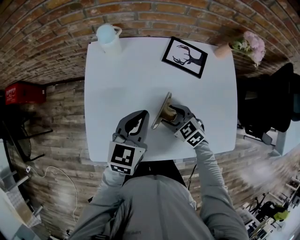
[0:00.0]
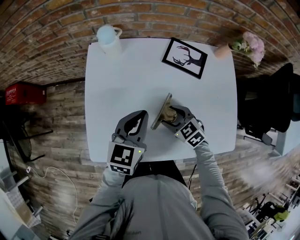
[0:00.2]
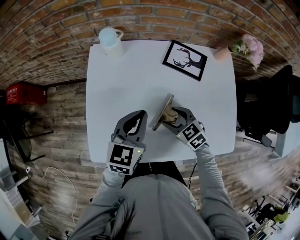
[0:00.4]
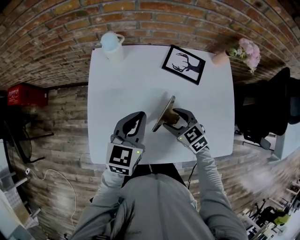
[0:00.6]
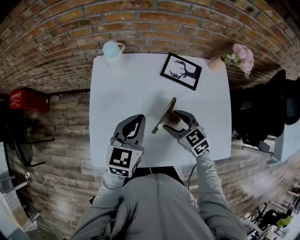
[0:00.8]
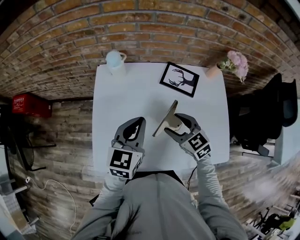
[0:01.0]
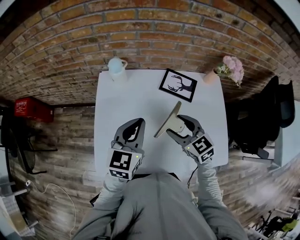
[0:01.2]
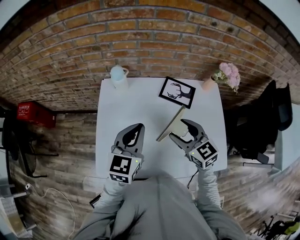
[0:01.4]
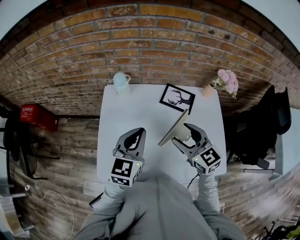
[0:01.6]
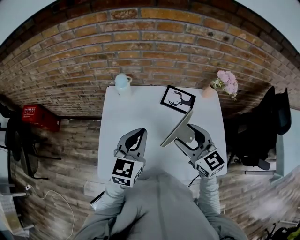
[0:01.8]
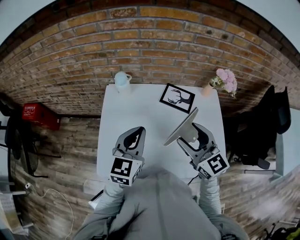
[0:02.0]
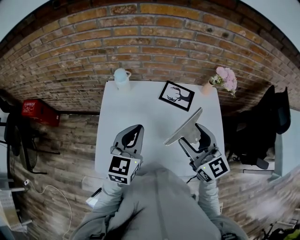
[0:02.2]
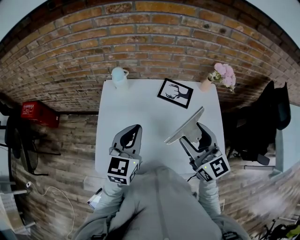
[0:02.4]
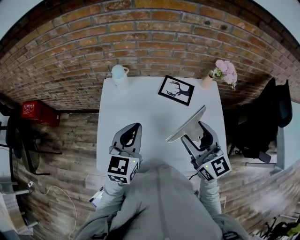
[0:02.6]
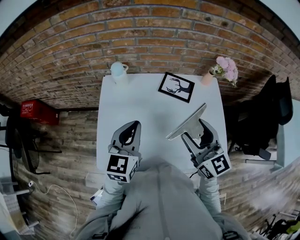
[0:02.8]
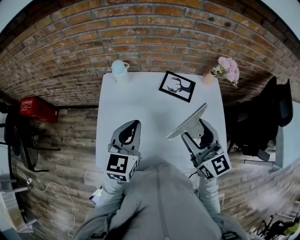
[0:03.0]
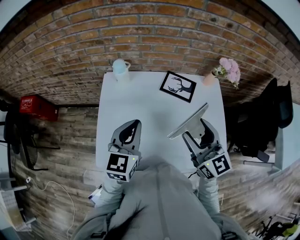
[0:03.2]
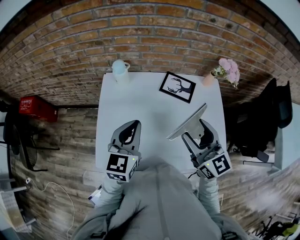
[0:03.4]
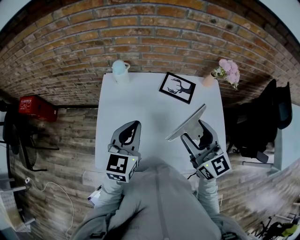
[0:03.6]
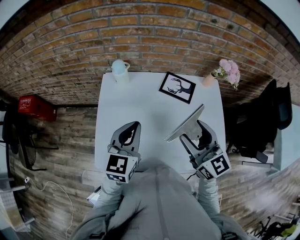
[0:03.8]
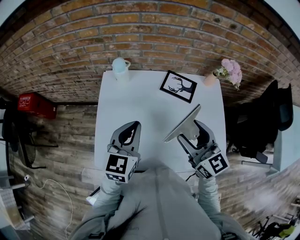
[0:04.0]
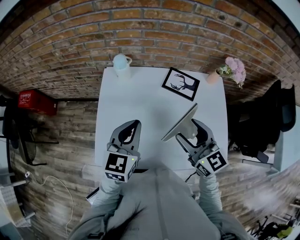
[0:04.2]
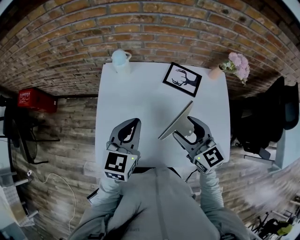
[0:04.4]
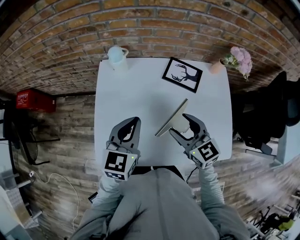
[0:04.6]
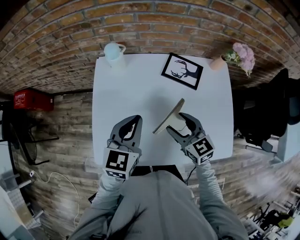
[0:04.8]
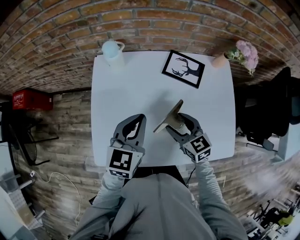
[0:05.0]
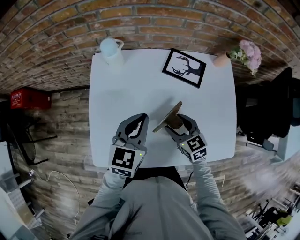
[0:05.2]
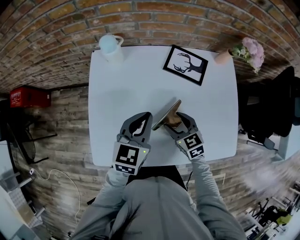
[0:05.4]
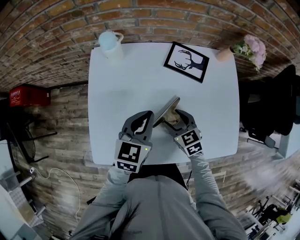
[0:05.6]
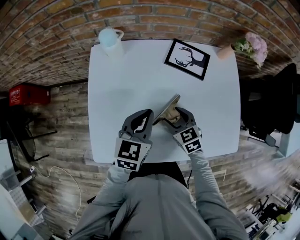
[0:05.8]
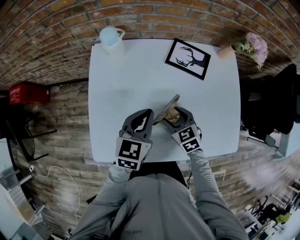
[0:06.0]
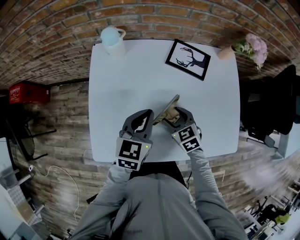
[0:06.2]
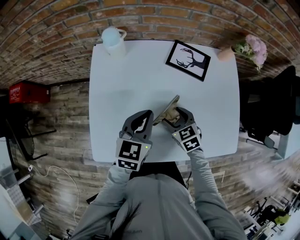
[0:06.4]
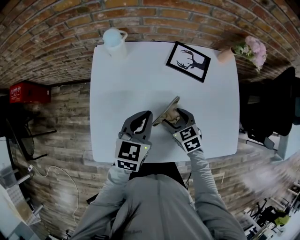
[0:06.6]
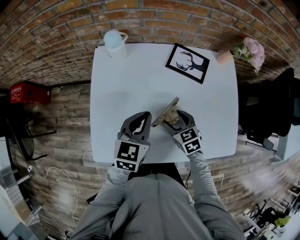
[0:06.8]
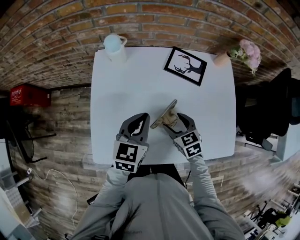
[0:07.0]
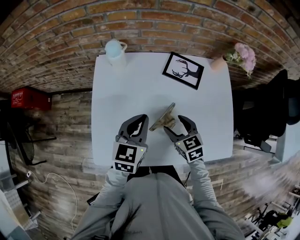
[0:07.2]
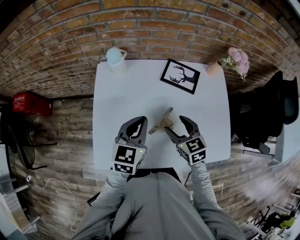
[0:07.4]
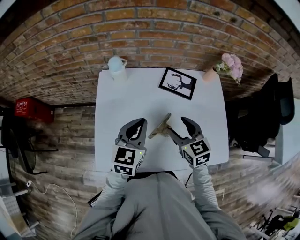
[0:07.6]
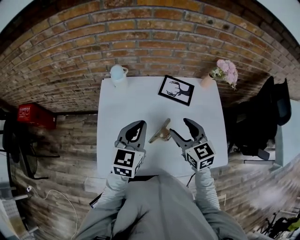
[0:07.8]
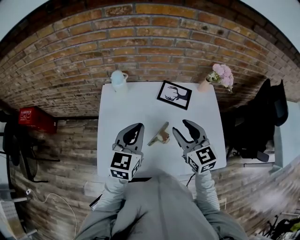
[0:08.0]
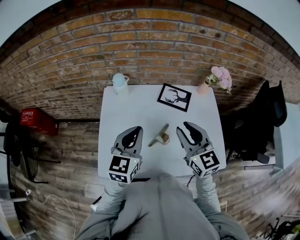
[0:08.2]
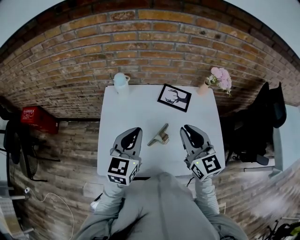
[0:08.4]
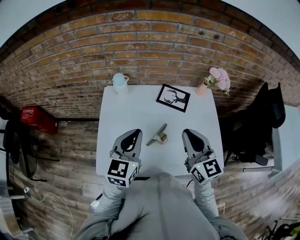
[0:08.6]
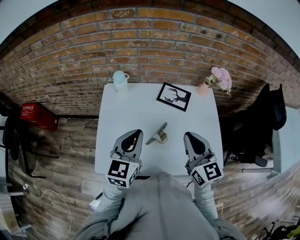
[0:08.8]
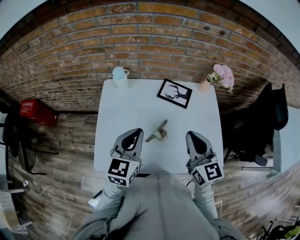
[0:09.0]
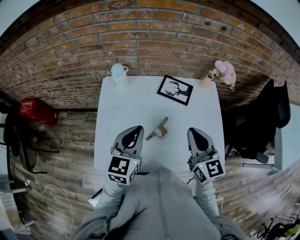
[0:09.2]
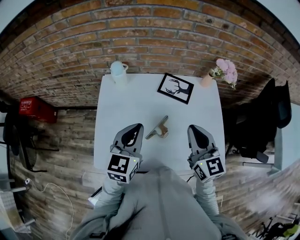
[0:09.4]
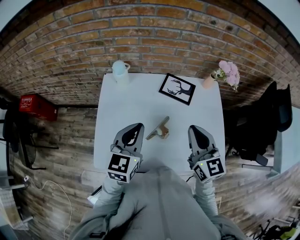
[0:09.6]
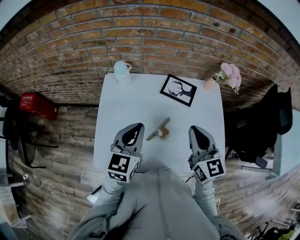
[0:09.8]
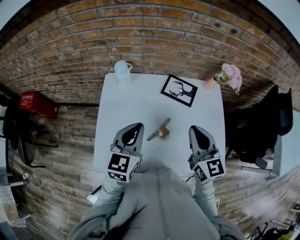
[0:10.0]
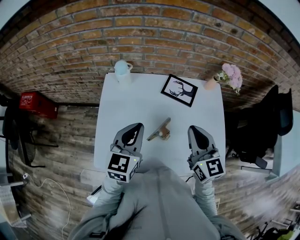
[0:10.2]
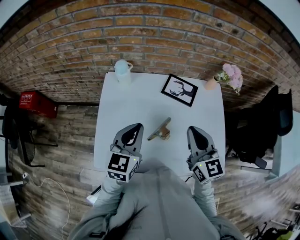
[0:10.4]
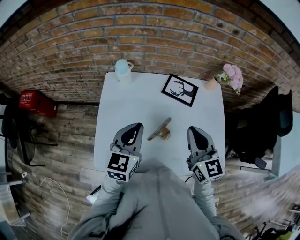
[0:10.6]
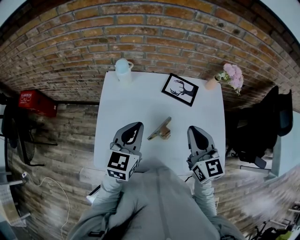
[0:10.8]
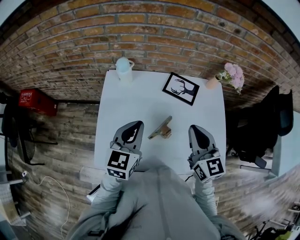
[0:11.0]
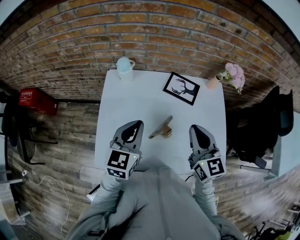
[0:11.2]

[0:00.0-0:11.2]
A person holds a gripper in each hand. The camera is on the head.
0:00.0 to 0:01.6: The left gripper is displaced upward by roughly 10 cm. Meanwhile the right gripper heads upward, covering approximately 25 cm, and angles its fingers upward, by some 30 degrees.
0:01.6 to 0:03.2: The right gripper goes some 5 cm upward.
0:03.2 to 0:04.8: The left gripper moves downward, approximately 5 cm; the right gripper heads downward, covering about 15 cm, and swivels some 30 degrees.
0:04.8 to 0:06.4: The left gripper moves downward, approximately 10 cm. Meanwhile the right gripper goes approximately 15 cm downward, and swivels some 20 degrees.
0:06.4 to 0:08.0: The left gripper shifts about 15 cm upward. The right gripper goes approximately 25 cm upward, and tips its fingers upward by about 30 degrees.
0:08.0 to 0:09.6: The right gripper ends up some 5 cm from where it was, and closes its fingers.
0:09.6 to 0:11.2: The grippers make only small movements.

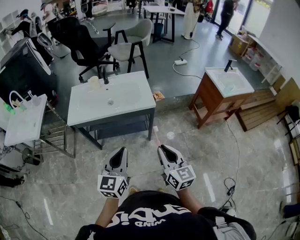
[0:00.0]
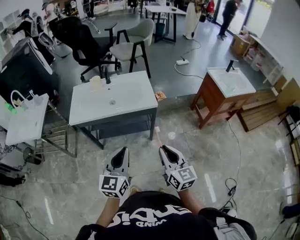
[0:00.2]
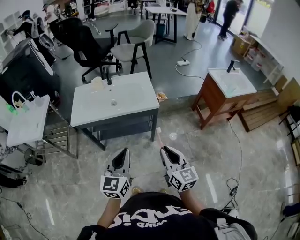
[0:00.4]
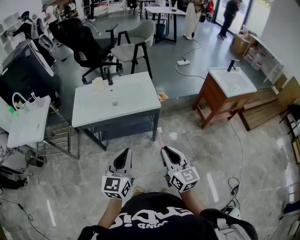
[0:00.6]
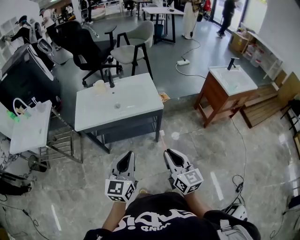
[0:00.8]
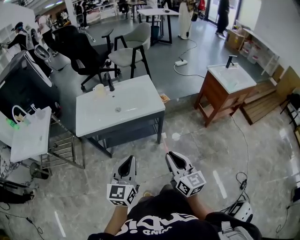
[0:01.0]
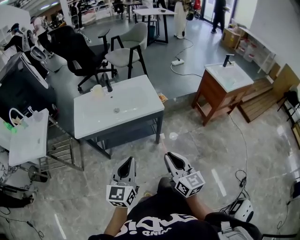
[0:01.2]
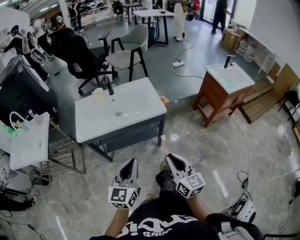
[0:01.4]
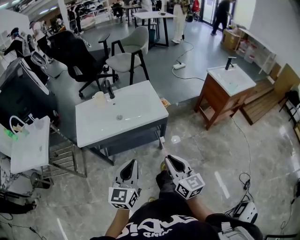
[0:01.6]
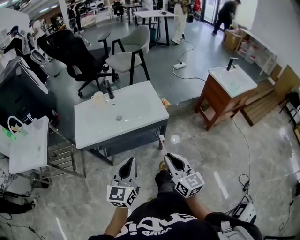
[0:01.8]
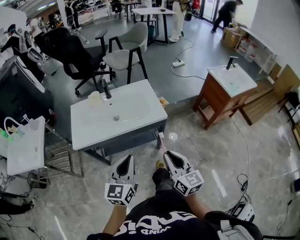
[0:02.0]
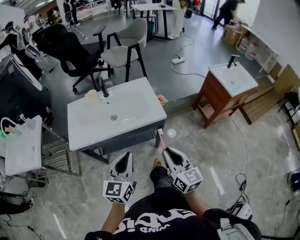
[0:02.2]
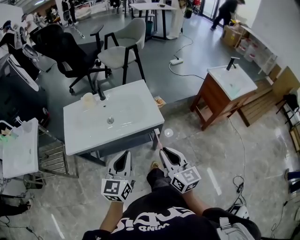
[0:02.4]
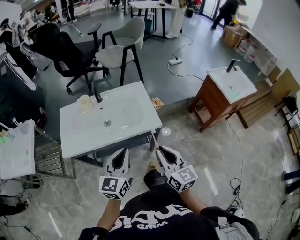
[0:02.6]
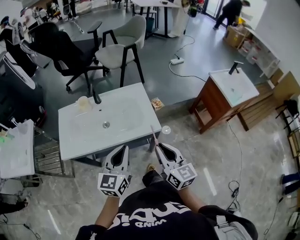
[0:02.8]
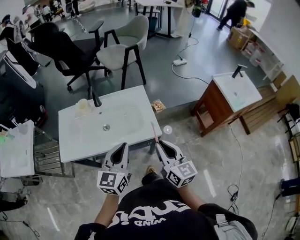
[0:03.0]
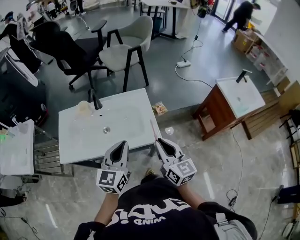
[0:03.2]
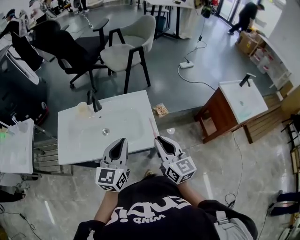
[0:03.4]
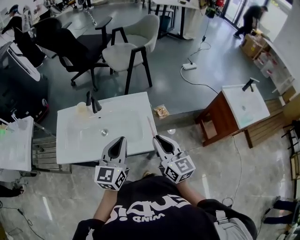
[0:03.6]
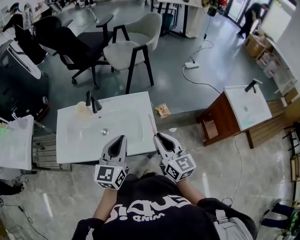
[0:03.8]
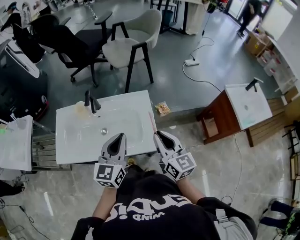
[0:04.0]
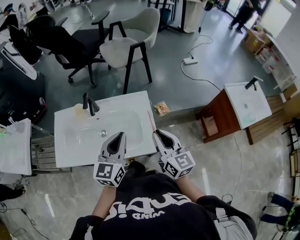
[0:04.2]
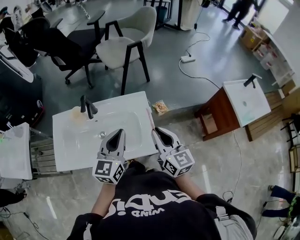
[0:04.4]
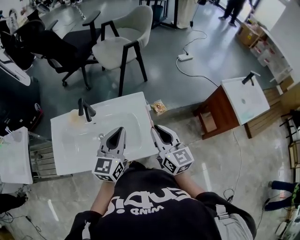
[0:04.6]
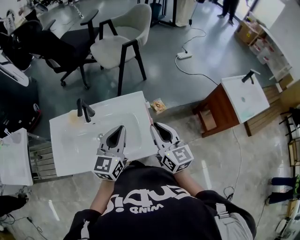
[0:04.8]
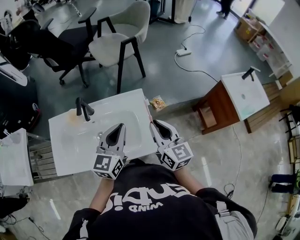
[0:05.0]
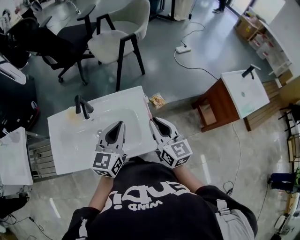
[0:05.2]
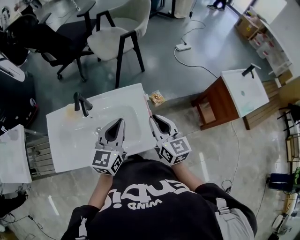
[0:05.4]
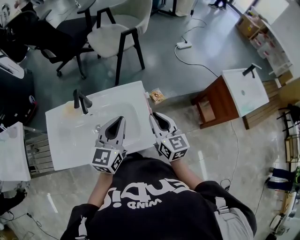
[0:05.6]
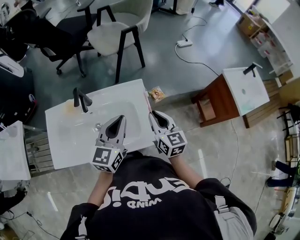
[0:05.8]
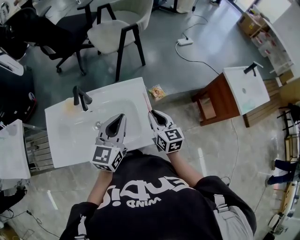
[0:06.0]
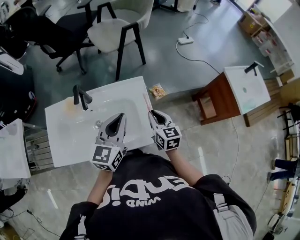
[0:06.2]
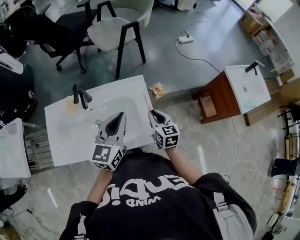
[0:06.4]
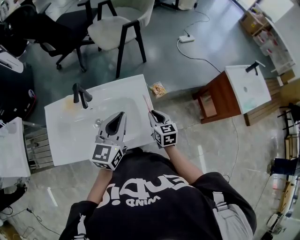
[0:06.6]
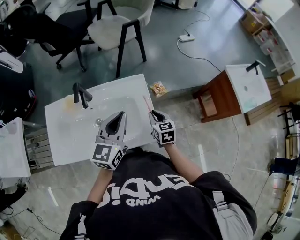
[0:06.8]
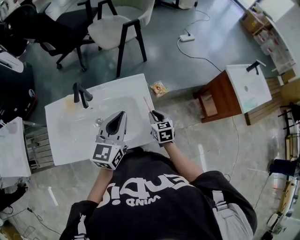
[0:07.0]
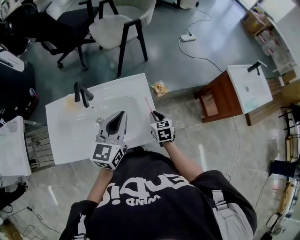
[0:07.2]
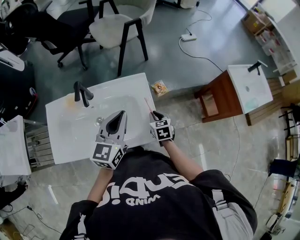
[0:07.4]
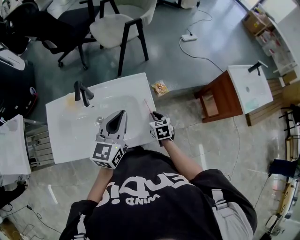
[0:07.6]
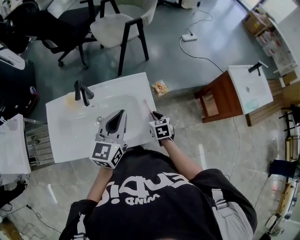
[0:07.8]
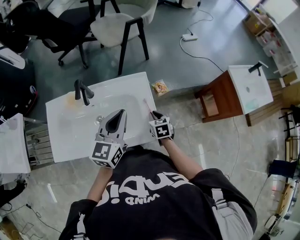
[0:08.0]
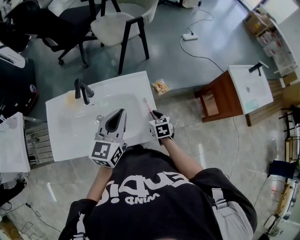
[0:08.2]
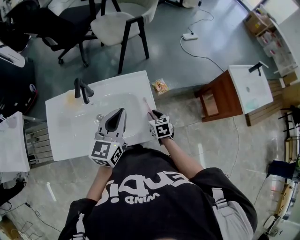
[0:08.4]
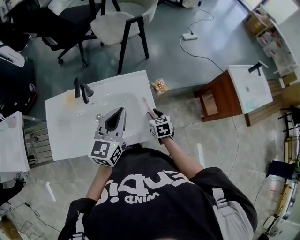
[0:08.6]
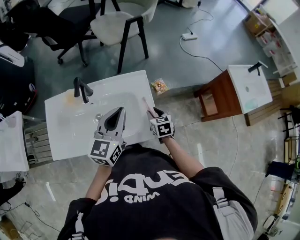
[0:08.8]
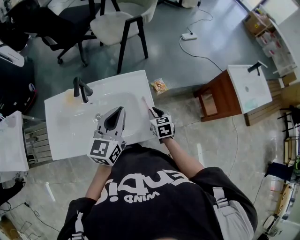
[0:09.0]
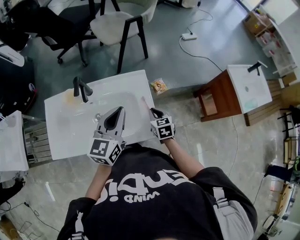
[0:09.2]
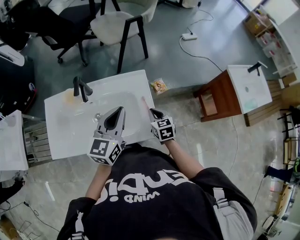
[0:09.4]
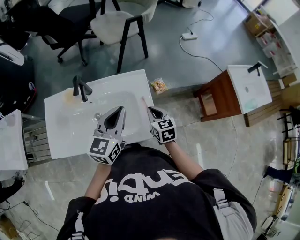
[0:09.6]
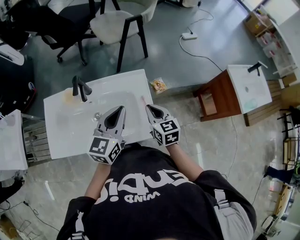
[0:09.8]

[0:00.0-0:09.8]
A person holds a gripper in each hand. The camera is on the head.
0:00.0 to 0:01.4: The grippers both shift to the left by about 5 cm.
0:01.4 to 0:02.8: Both grippers move forward, about 25 cm.
0:02.8 to 0:04.2: The two grippers go about 20 cm forward.
0:04.2 to 0:05.6: Both grippers travel together forward, approximately 5 cm.
0:05.6 to 0:07.0: The right gripper moves downward, roughly 15 cm, and turns by approximately 30 degrees.
0:07.0 to 0:08.4: There are only small adjustments of the grippers.
0:08.4 to 0:09.8: The right gripper goes roughly 15 cm upward, turns by roughly 20 degrees, and closes up.

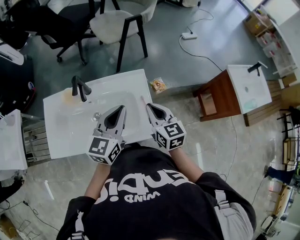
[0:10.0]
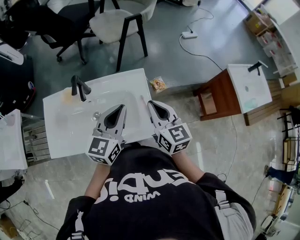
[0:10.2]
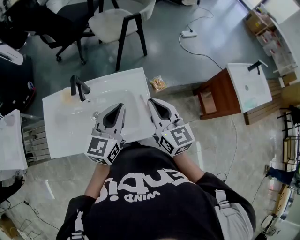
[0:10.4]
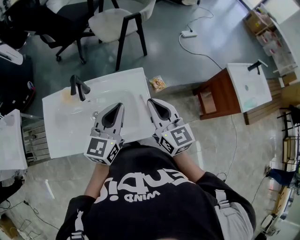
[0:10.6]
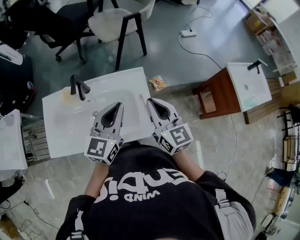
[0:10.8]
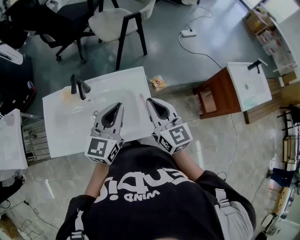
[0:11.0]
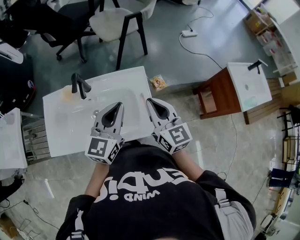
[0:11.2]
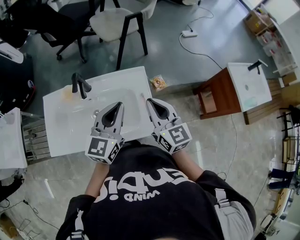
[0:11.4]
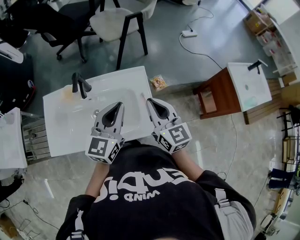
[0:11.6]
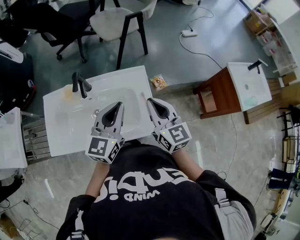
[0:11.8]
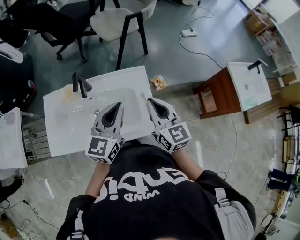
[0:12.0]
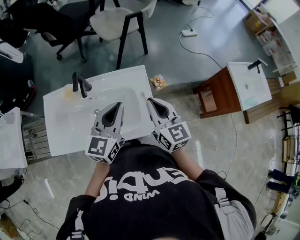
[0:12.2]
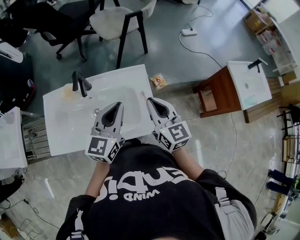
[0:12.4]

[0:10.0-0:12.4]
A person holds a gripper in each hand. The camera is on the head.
0:10.0 to 0:11.2: The right gripper shifts about 5 cm upward.
0:11.2 to 0:12.4: The grippers make only small movements.
